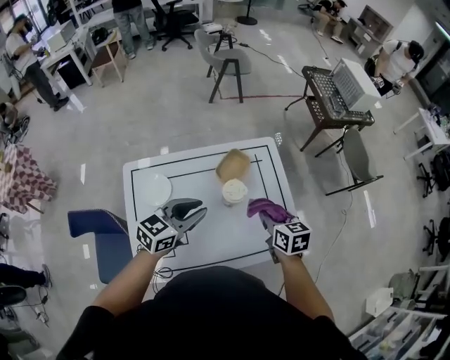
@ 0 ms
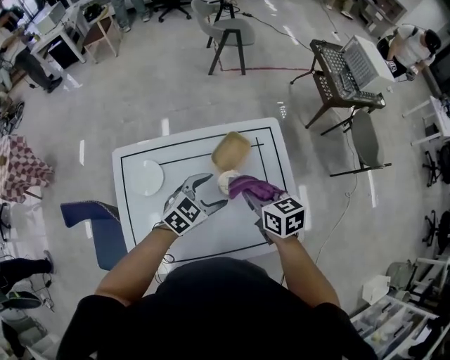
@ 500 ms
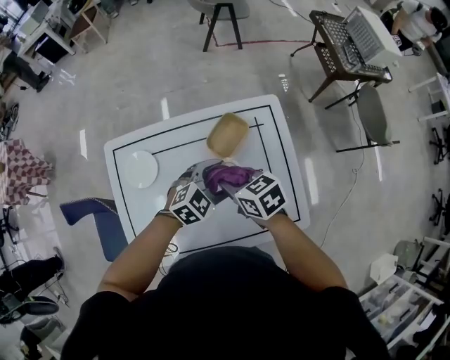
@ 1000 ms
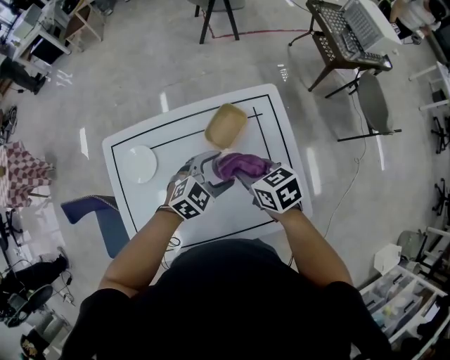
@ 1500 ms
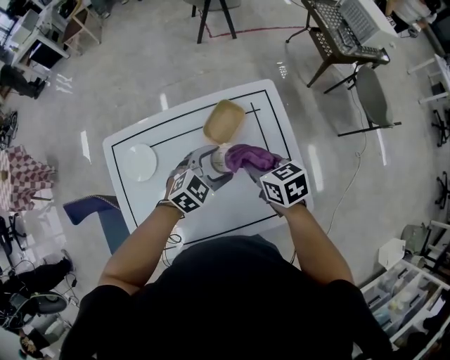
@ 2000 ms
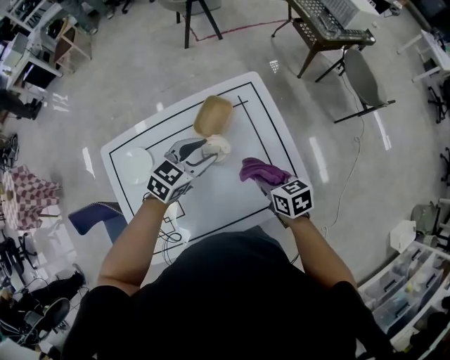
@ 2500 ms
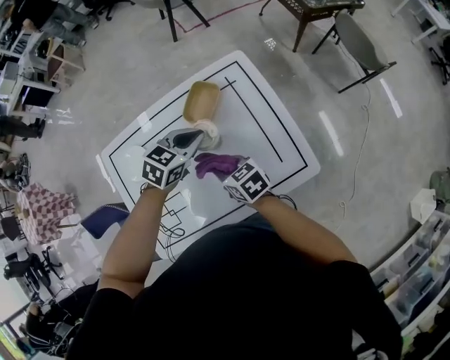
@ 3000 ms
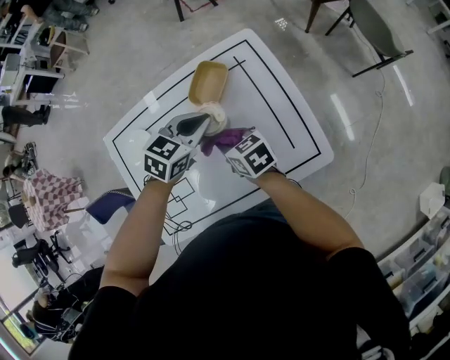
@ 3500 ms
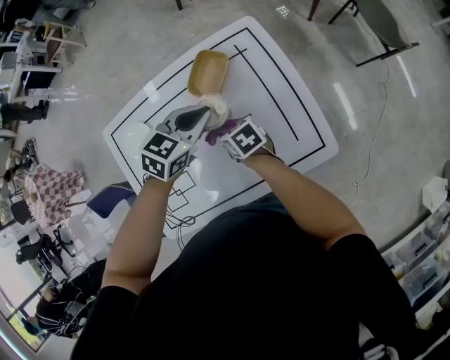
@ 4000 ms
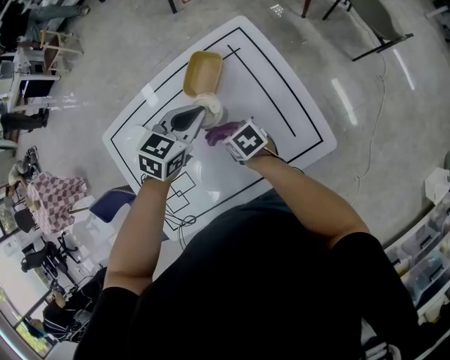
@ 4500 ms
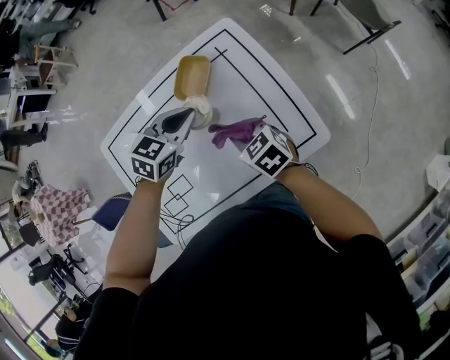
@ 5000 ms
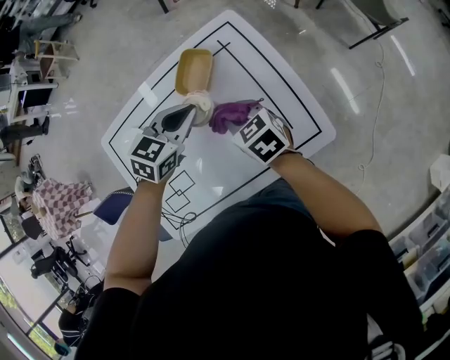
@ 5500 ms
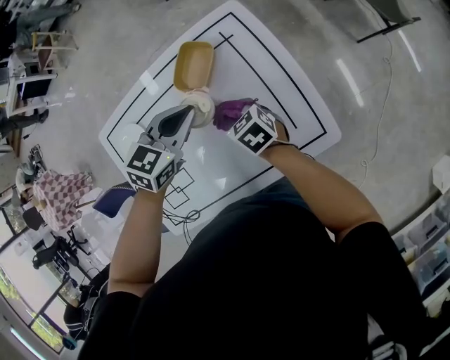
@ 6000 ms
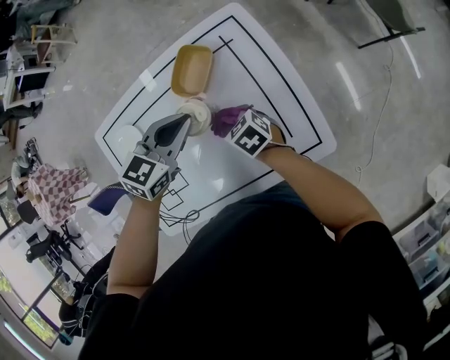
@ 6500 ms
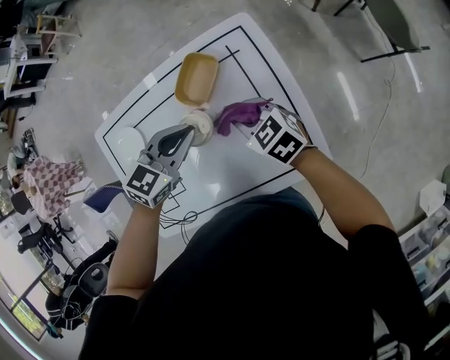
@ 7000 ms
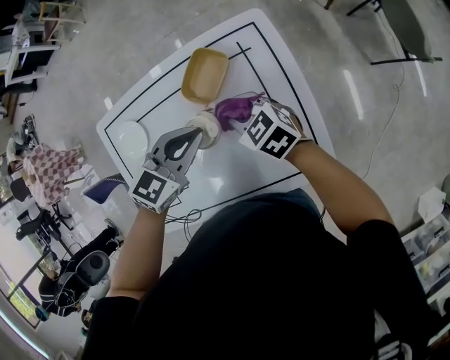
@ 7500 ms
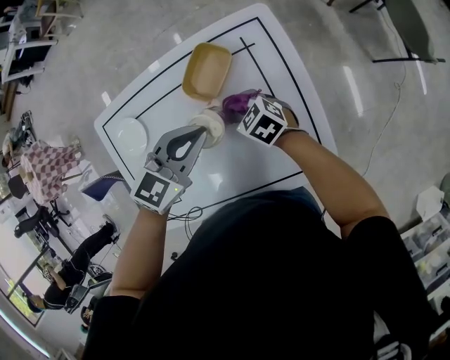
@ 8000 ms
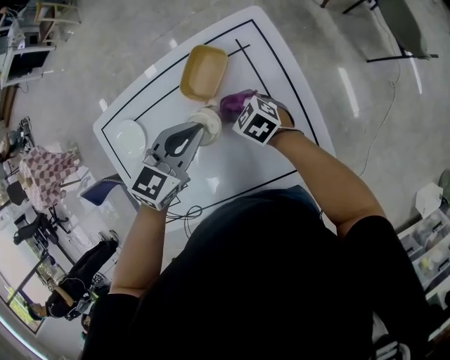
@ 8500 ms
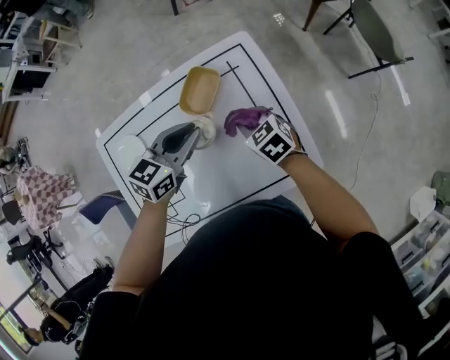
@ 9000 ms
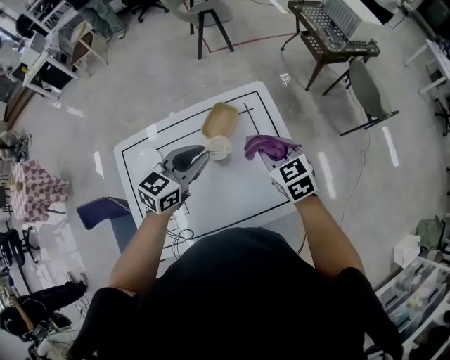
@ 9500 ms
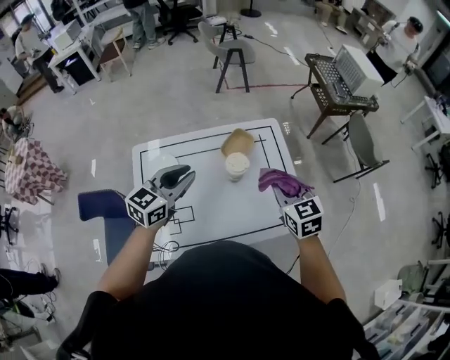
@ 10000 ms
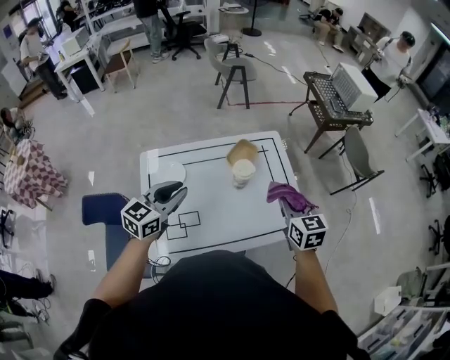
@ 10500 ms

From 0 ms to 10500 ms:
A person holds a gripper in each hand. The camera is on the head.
From 0 ms to 2000 ms: The right gripper travels forward and downward by some 10 cm, and goes to the left and returns, roughly 10 cm each way; the left gripper goes some 25 cm downward, to the right and forward, rotates approximately 30 degrees, and opens its fingers.
From 2000 ms to 4000 ms: The left gripper closes its fingers. Meanwhile the right gripper heads downward, covering about 15 cm.
From 4000 ms to 6500 ms: The right gripper heads to the right, covering approximately 5 cm, and reaches about 10 cm upward, then returns.
From 6500 ms to 8500 ms: The right gripper heads forward, covering approximately 10 cm, and reaches approximately 10 cm upward, then returns.
From 8500 ms to 10500 ms: The right gripper is displaced upward and backward by roughly 50 cm, and changes its angle by approximately 40 degrees. Meanwhile the left gripper shifts roughly 40 cm backward, upward and to the left, and swivels roughly 20 degrees.

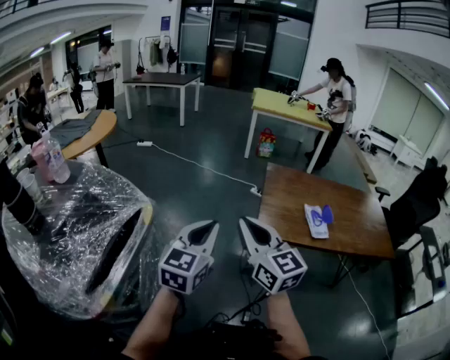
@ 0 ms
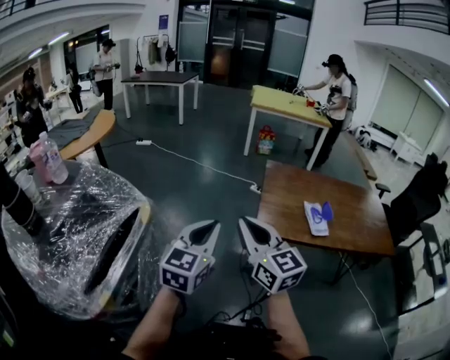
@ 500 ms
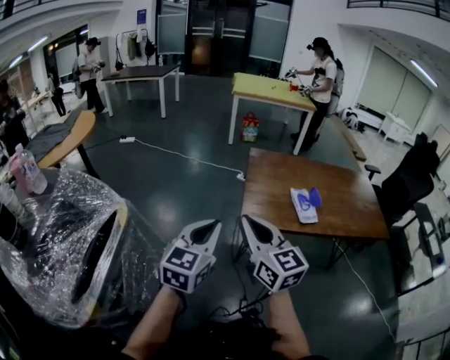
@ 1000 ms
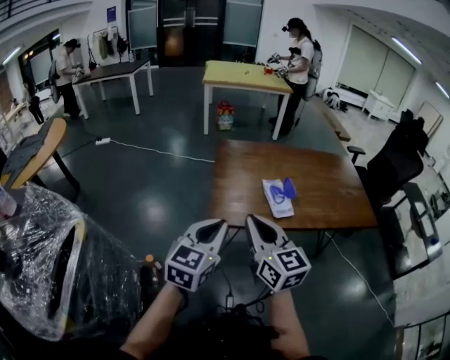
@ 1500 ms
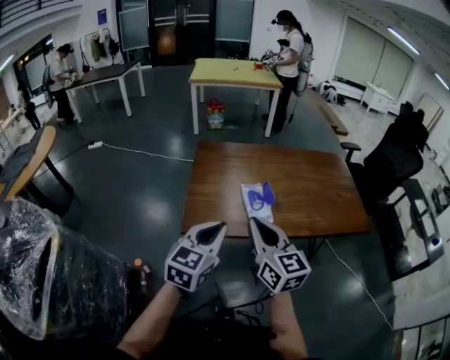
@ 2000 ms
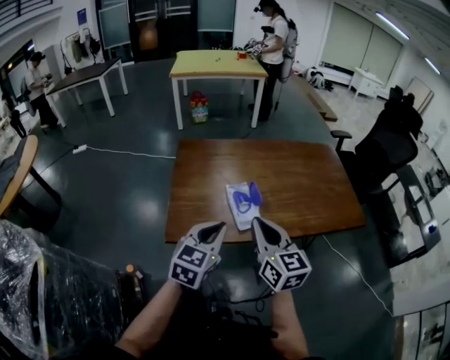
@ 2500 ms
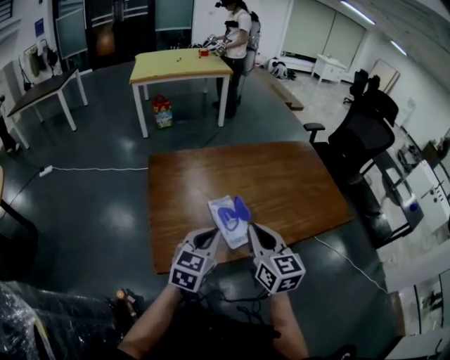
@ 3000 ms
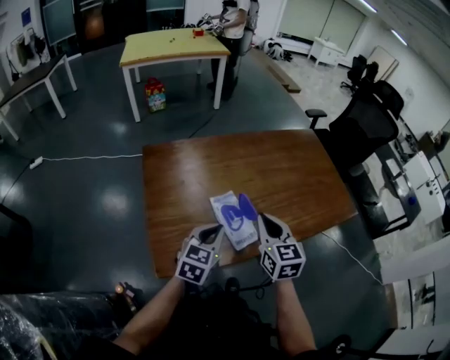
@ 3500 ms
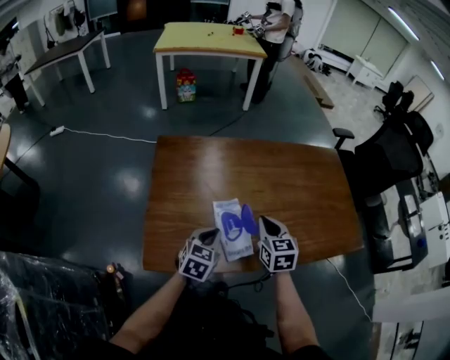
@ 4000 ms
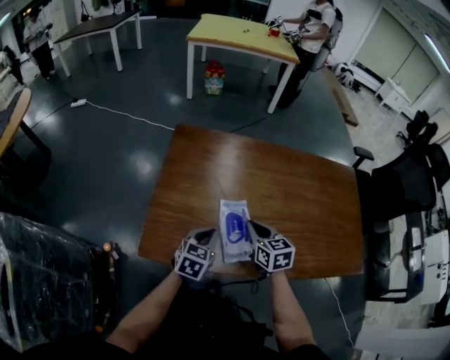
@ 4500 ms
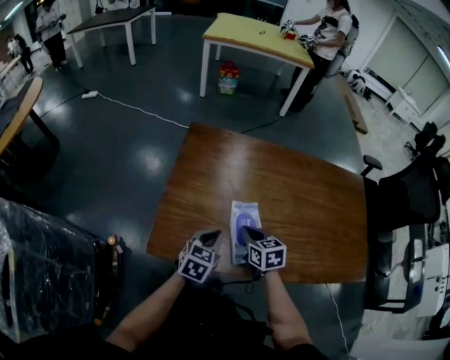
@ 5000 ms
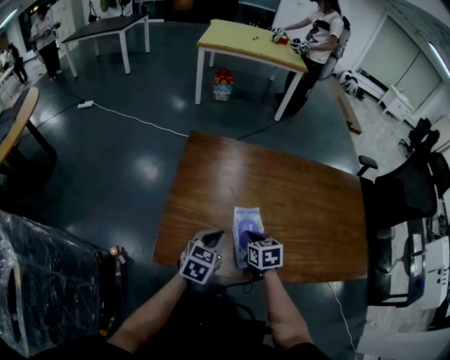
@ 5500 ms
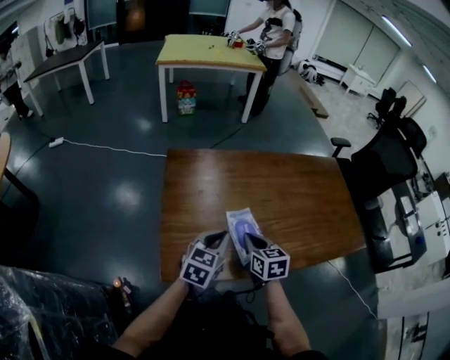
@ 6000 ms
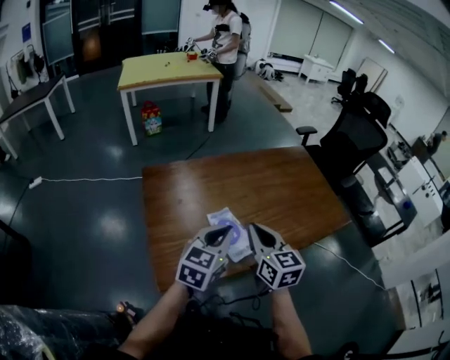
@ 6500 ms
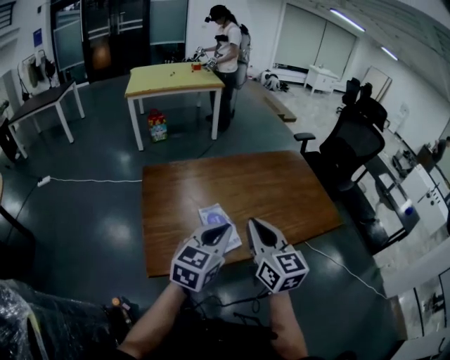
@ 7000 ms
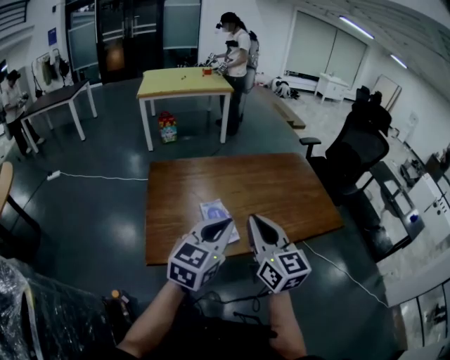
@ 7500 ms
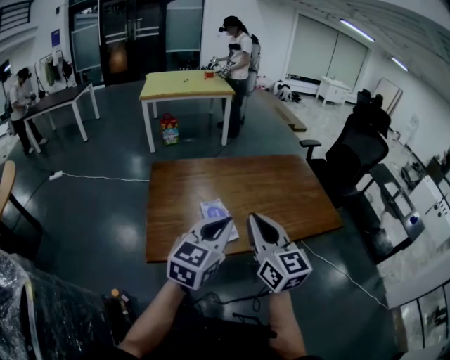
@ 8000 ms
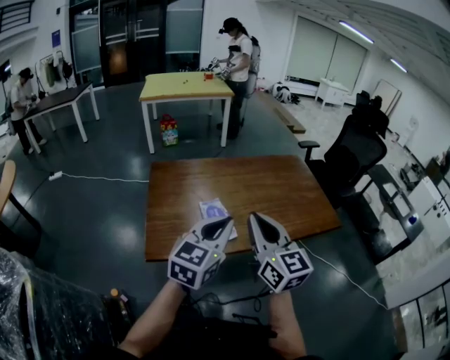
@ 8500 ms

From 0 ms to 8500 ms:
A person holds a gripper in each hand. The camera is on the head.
From 0 ms to 2000 ms: The grippers both shift to the right by roughly 35 cm. The left gripper turns by some 20 degrees. Meanwhile the right gripper turns by some 20 degrees.
From 2000 ms to 4000 ms: The grippers both shift forward and downward by approximately 30 cm. The right gripper turns by some 30 degrees. Meanwhile the left gripper rotates some 20 degrees.
From 4000 ms to 6500 ms: Both grippers travel together upward, approximately 15 cm. The left gripper changes its angle by about 20 degrees.
From 6500 ms to 8500 ms: Both grippers travel together backward, upward and to the right, about 15 cm. The right gripper swivels some 20 degrees.

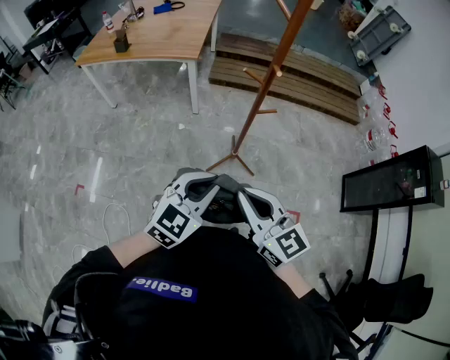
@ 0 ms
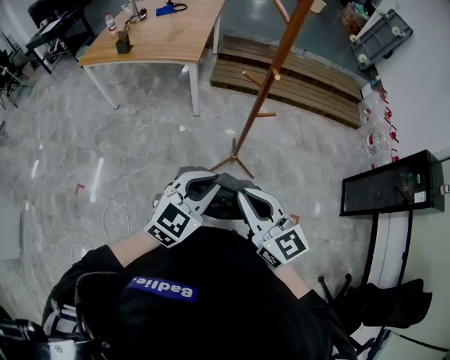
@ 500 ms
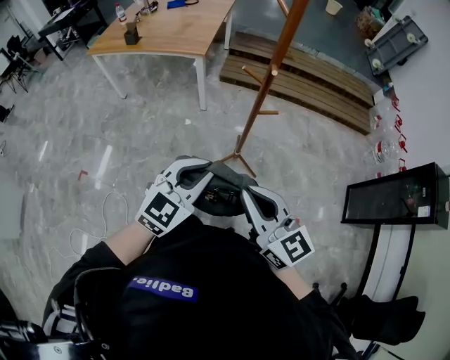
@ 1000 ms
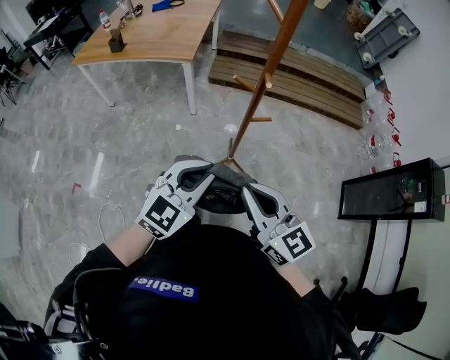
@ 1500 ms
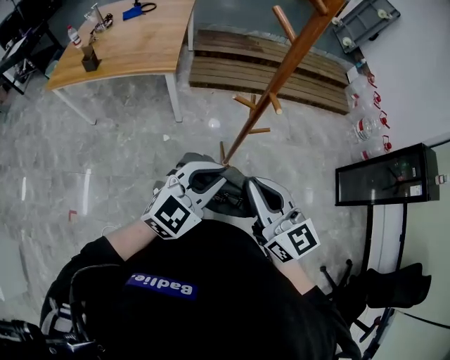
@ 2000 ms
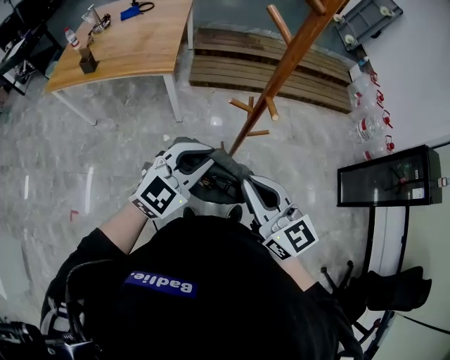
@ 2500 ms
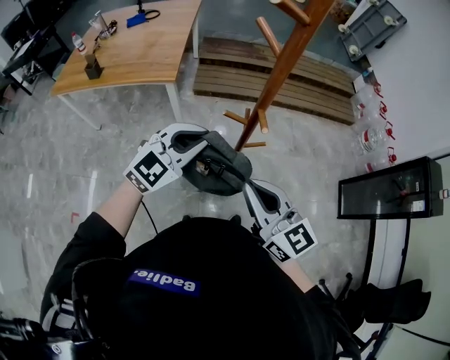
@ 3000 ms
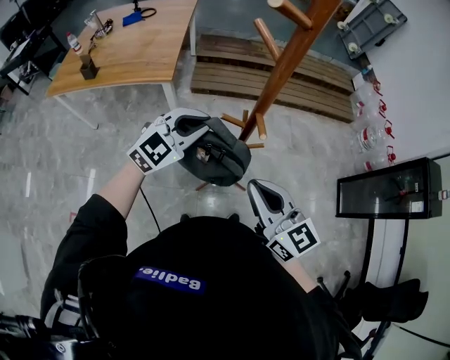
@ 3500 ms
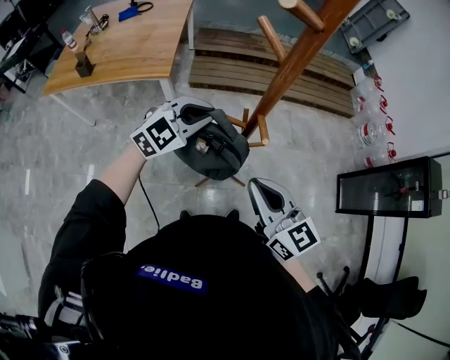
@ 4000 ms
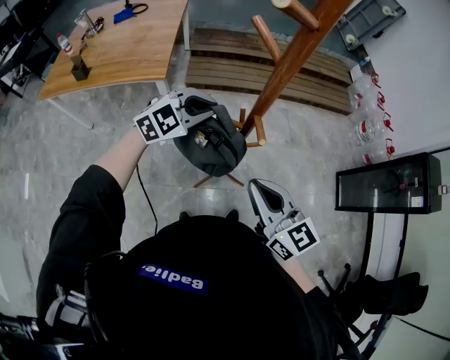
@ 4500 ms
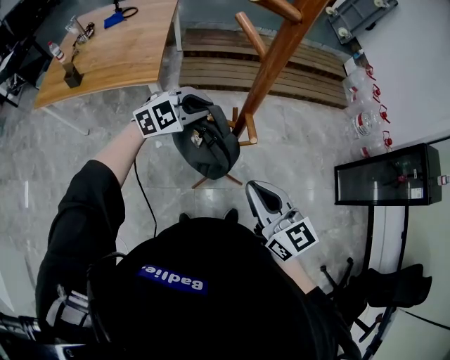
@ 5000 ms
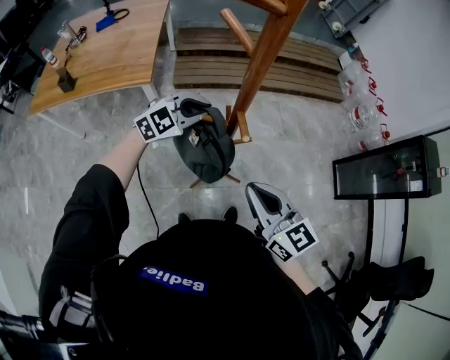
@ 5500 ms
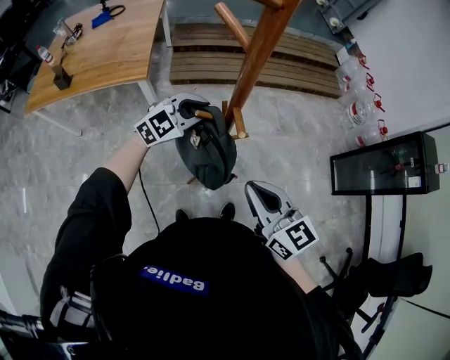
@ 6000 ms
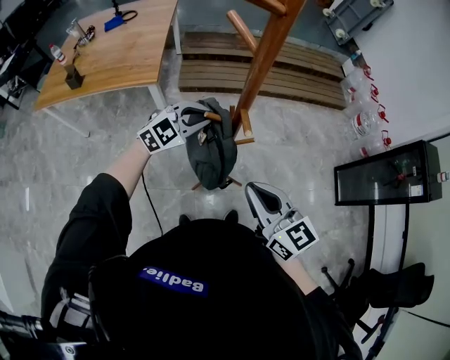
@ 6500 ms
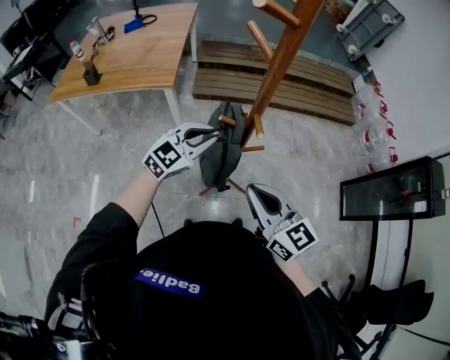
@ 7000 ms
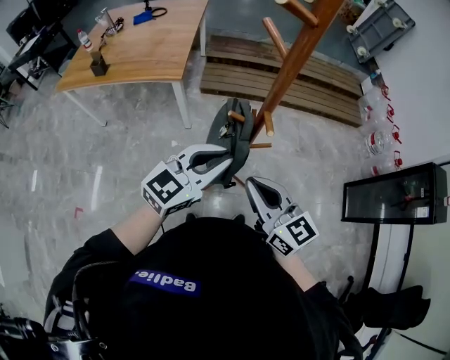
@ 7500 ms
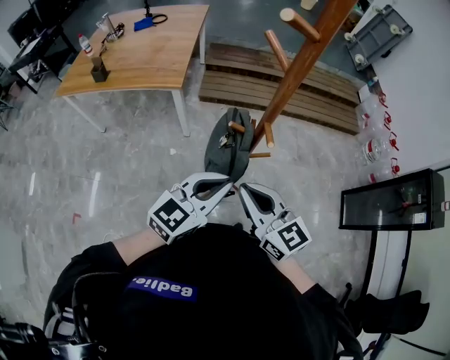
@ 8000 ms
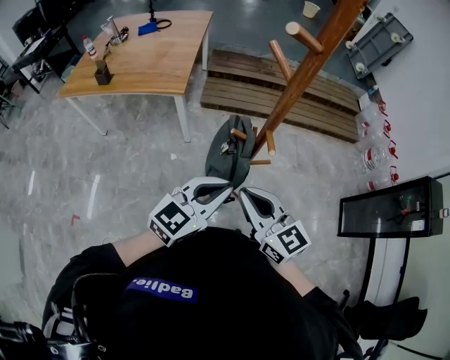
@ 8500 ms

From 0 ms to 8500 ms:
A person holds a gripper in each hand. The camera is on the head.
From 0 ms to 2000 ms: Both grippers travel together forward, about 15 cm.
From 2000 ms to 4000 ms: The left gripper moves forward, some 20 cm, while the right gripper shifts approximately 10 cm forward.
From 4000 ms to 6500 ms: The left gripper is displaced downward by approximately 5 cm.
From 6500 ms to 8500 ms: The right gripper moves to the left, roughly 5 cm; the left gripper shifts some 20 cm backward and upward, and changes its angle by about 40 degrees.
